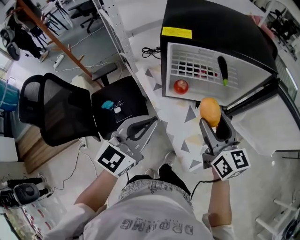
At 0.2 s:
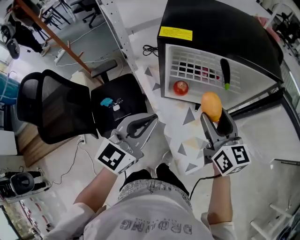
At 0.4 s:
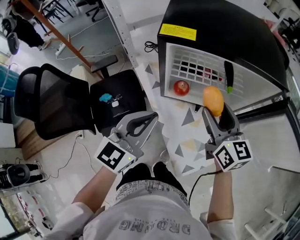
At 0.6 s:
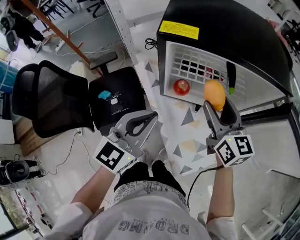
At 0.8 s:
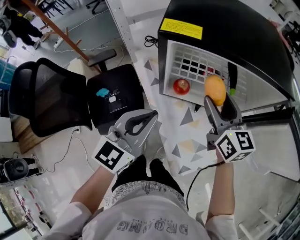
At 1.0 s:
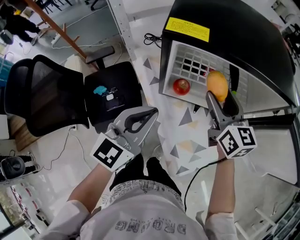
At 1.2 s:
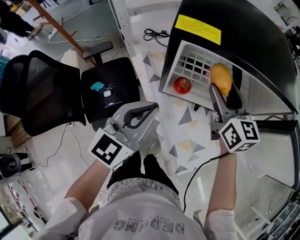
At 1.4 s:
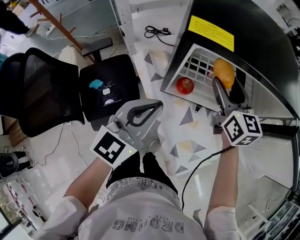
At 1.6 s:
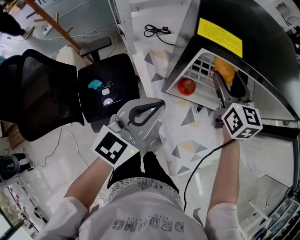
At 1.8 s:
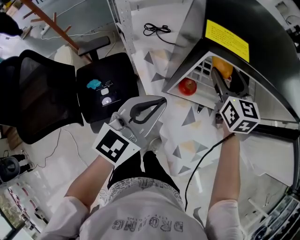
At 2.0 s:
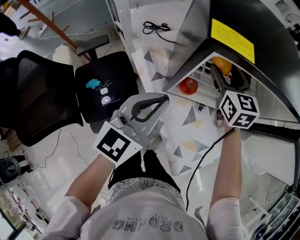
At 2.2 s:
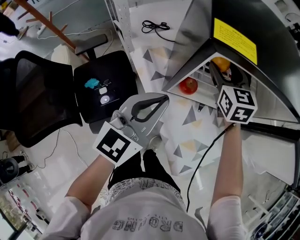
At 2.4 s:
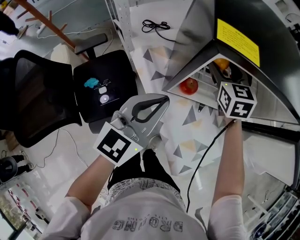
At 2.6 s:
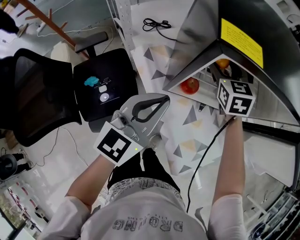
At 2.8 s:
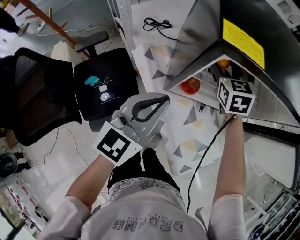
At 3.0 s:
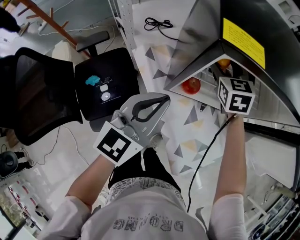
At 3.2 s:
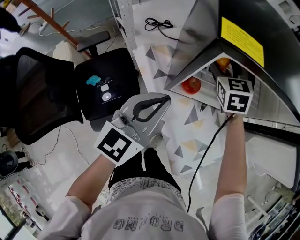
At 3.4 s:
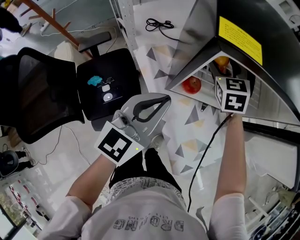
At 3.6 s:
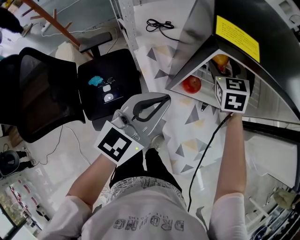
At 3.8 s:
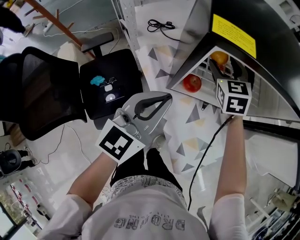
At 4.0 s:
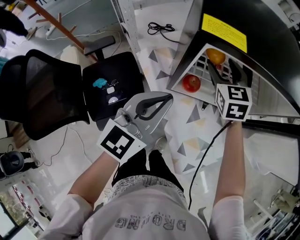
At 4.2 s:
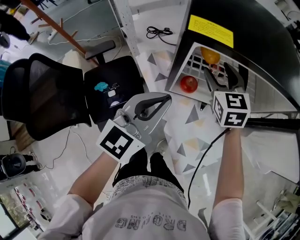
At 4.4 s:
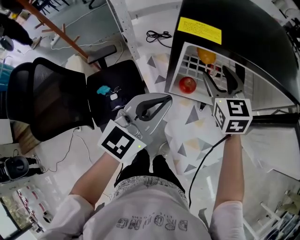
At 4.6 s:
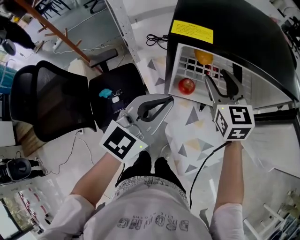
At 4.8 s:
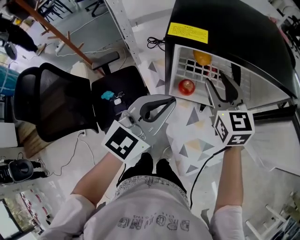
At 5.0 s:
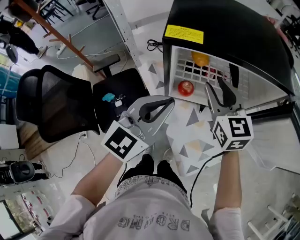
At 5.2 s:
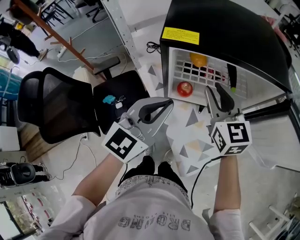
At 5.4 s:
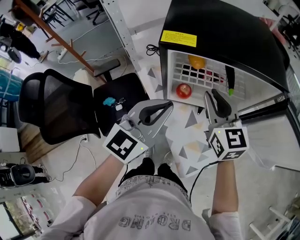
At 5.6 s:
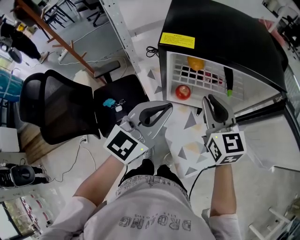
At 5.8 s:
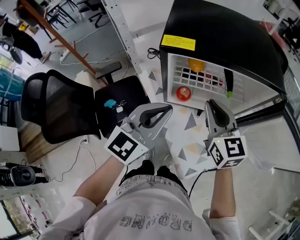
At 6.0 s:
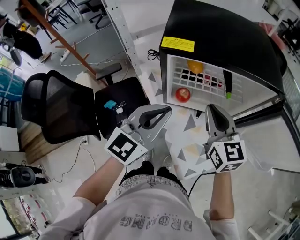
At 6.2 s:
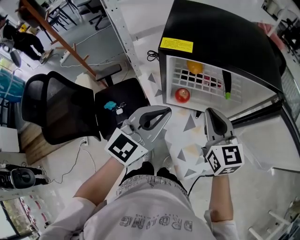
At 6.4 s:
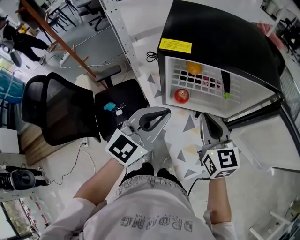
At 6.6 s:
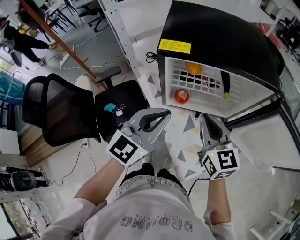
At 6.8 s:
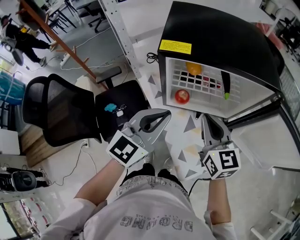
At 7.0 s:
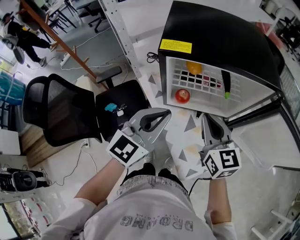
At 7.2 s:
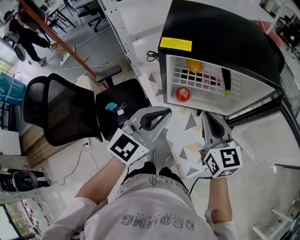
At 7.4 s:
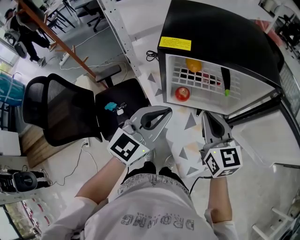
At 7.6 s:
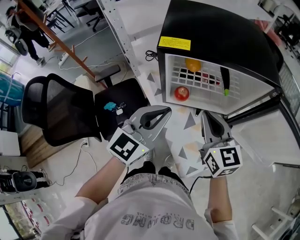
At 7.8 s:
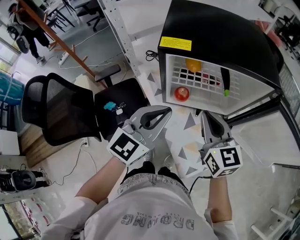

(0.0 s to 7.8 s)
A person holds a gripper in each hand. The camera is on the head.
0.0 s - 1.6 s: The left gripper heads forward, covering approximately 10 cm. Meanwhile the right gripper moves forward, roughly 25 cm.
1.6 s - 3.2 s: The right gripper moves downward and forward, roughly 10 cm, and changes its angle by about 30 degrees.
3.2 s - 4.6 s: The right gripper shifts roughly 15 cm backward and upward; the left gripper is displaced upward by approximately 5 cm.
4.6 s - 6.2 s: The right gripper shifts about 10 cm backward, and closes.
6.2 s - 7.8 s: The grippers move only a little.

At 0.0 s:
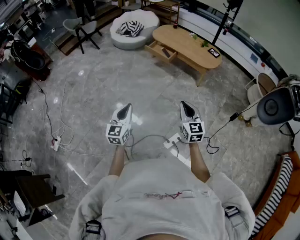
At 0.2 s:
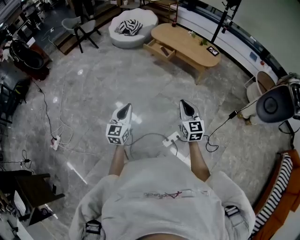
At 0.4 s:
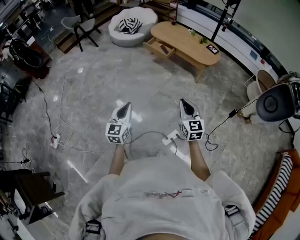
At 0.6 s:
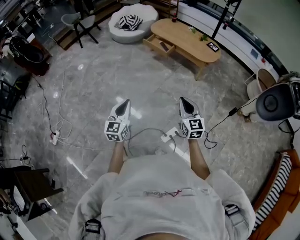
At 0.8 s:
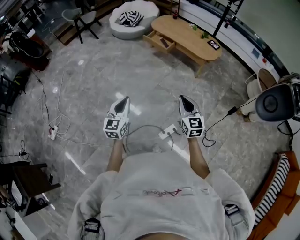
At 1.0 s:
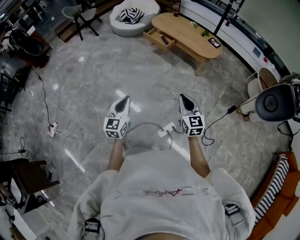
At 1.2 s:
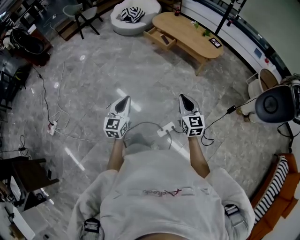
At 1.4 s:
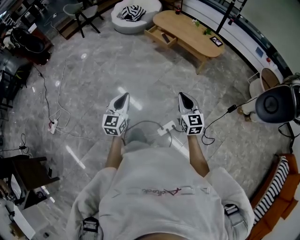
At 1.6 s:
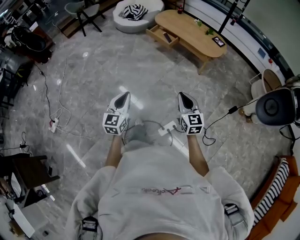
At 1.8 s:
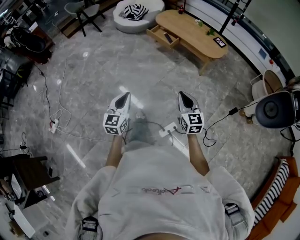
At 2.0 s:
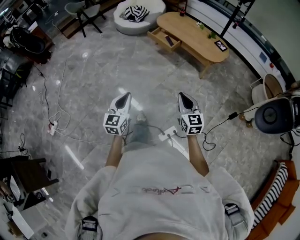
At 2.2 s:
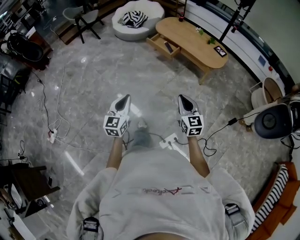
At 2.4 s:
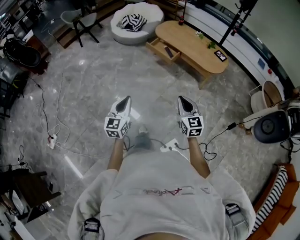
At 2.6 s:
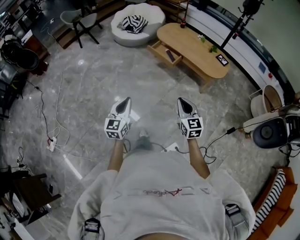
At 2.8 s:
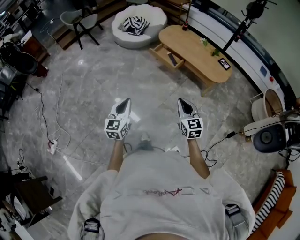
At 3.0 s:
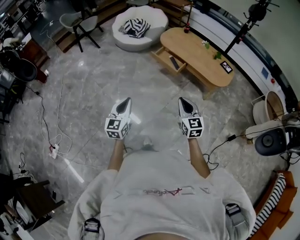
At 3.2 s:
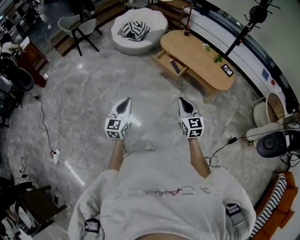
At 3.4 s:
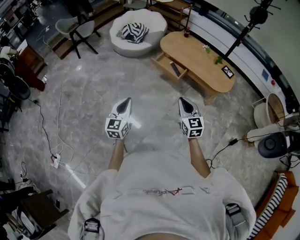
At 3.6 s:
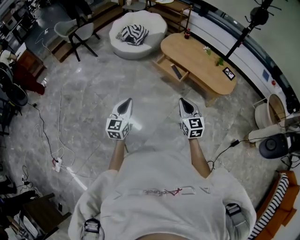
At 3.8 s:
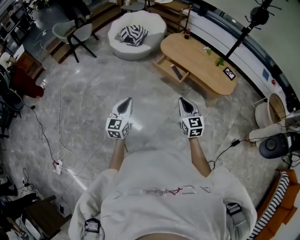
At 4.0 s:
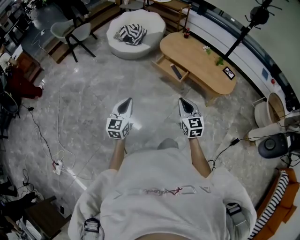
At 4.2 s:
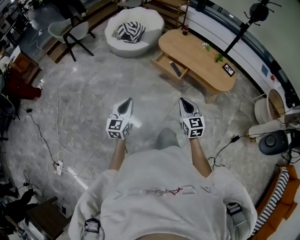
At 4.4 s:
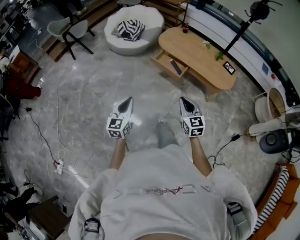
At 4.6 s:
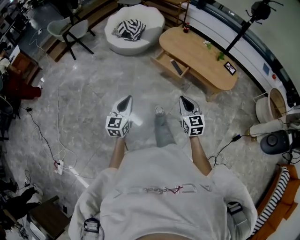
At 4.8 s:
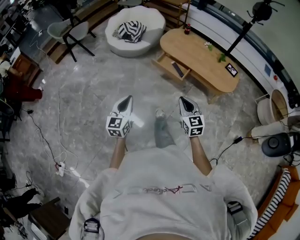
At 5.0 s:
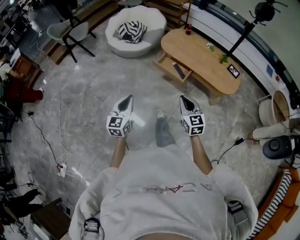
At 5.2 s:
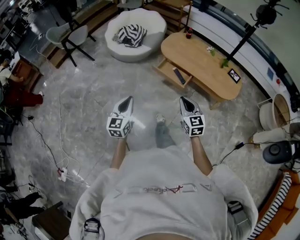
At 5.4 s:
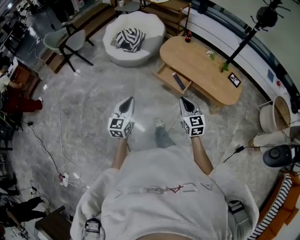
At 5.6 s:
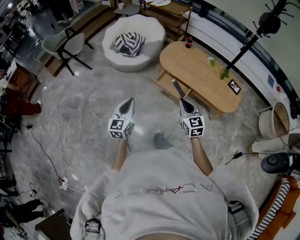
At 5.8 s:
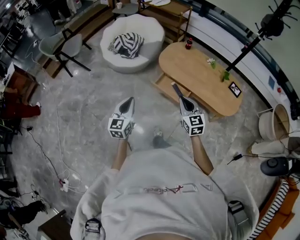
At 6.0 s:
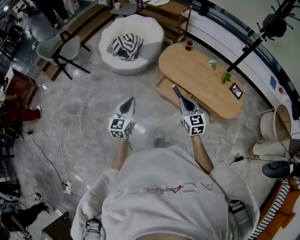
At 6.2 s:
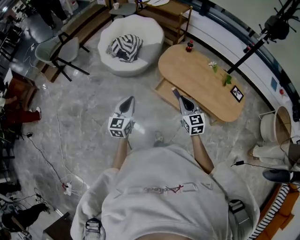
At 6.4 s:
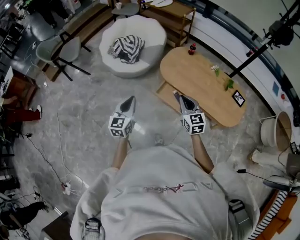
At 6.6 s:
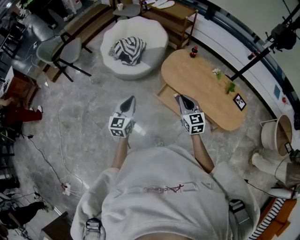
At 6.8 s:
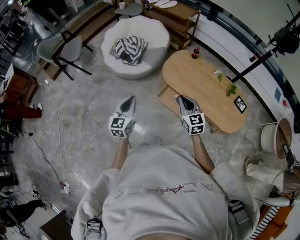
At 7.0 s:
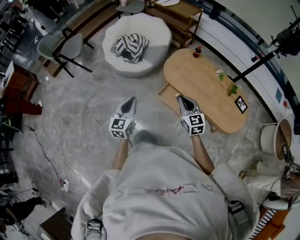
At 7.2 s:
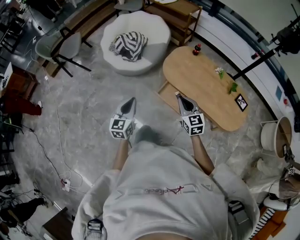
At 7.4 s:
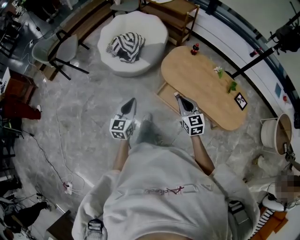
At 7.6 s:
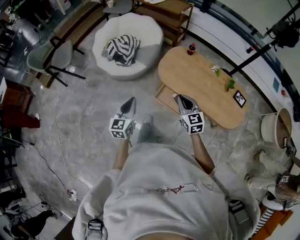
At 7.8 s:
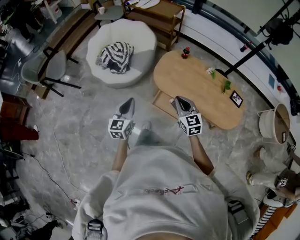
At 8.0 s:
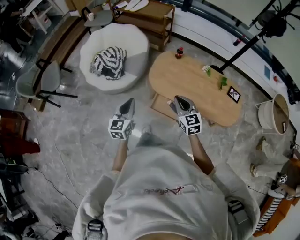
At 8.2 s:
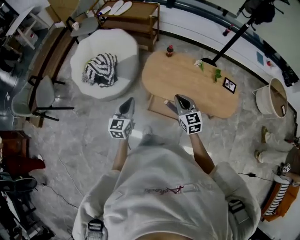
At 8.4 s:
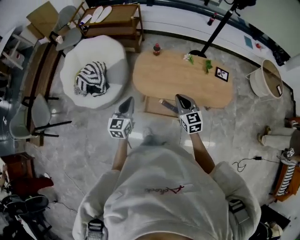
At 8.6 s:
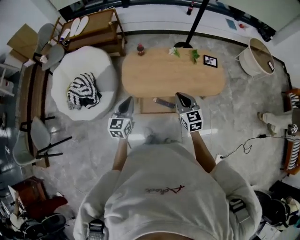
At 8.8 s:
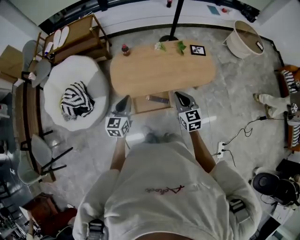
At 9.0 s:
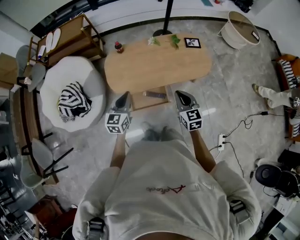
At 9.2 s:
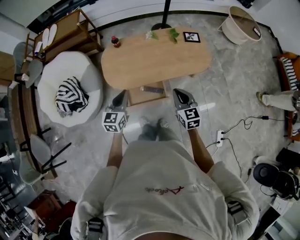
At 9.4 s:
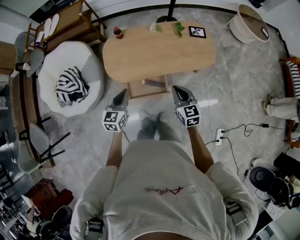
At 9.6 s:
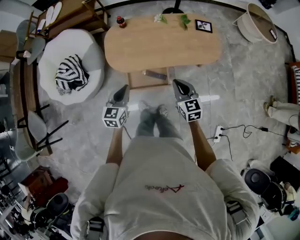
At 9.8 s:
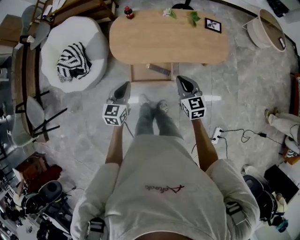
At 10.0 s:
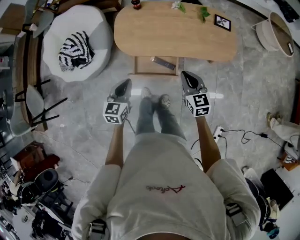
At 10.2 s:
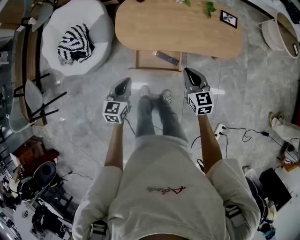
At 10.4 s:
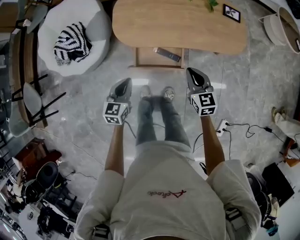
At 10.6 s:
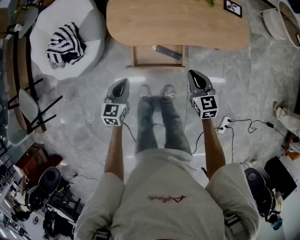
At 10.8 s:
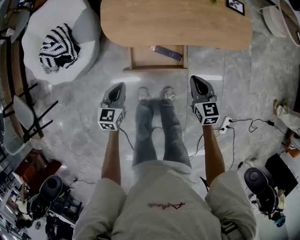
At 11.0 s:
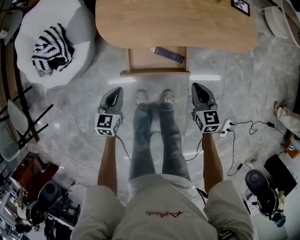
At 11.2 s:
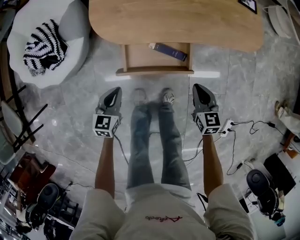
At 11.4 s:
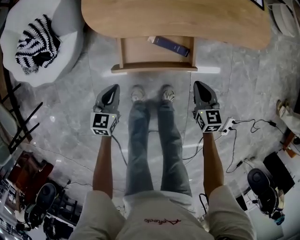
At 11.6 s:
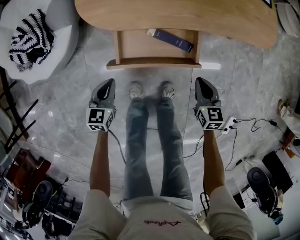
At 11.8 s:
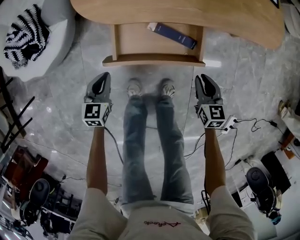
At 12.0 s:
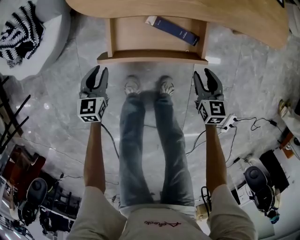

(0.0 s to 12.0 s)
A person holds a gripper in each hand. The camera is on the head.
0.0 s - 1.6 s: The two grippers go about 10 cm to the right.
1.6 s - 3.0 s: Both grippers move forward, about 35 cm.
3.0 s - 4.4 s: The left gripper goes about 15 cm forward. The right gripper shifts approximately 15 cm forward and to the left.
4.4 s - 6.0 s: Both grippers move forward, roughly 40 cm.
6.0 s - 7.6 s: Both grippers travel together forward, approximately 20 cm.
7.6 s - 9.0 s: The right gripper changes place by some 15 cm, and swivels about 50 degrees. Meanwhile the left gripper shifts by roughly 25 cm, and rotates approximately 50 degrees.
9.0 s - 10.4 s: The right gripper goes about 15 cm downward. Meanwhile the left gripper shifts about 20 cm downward and backward.
10.4 s - 12.0 s: Both grippers travel together downward, roughly 40 cm. The right gripper opens; the left gripper opens up.

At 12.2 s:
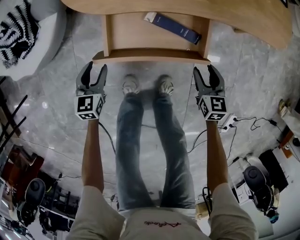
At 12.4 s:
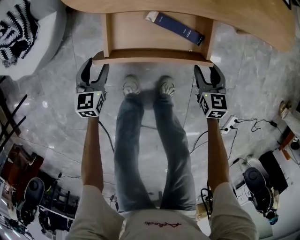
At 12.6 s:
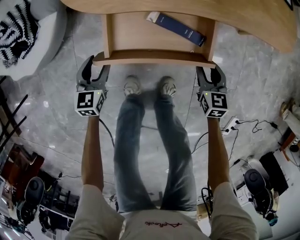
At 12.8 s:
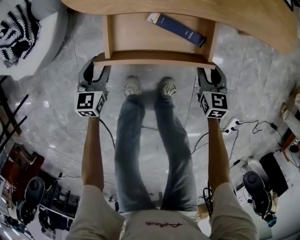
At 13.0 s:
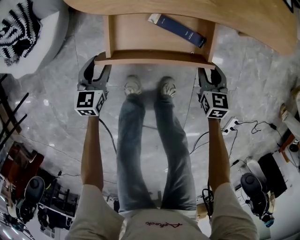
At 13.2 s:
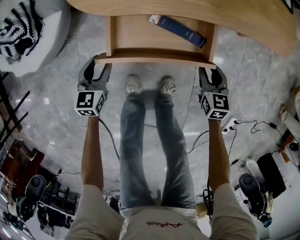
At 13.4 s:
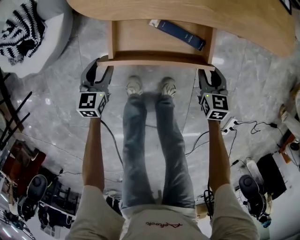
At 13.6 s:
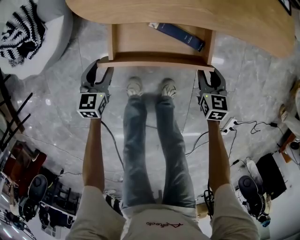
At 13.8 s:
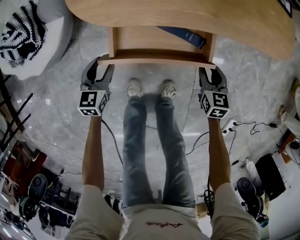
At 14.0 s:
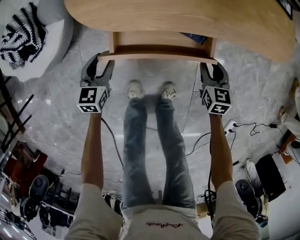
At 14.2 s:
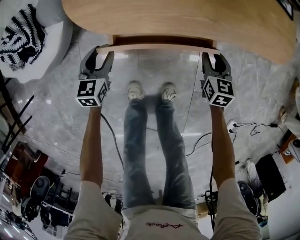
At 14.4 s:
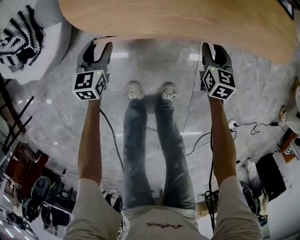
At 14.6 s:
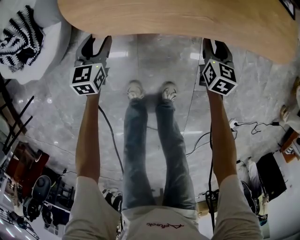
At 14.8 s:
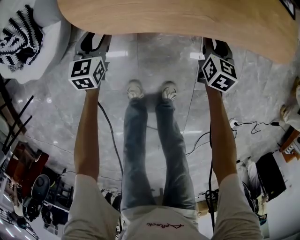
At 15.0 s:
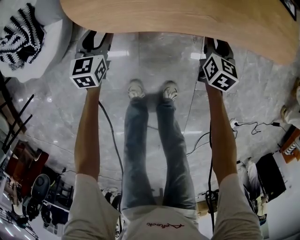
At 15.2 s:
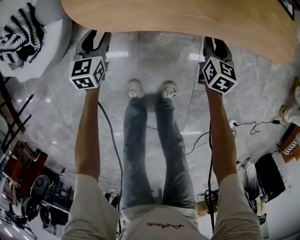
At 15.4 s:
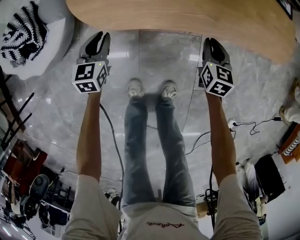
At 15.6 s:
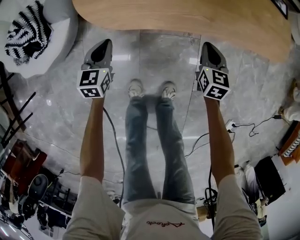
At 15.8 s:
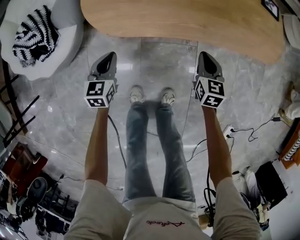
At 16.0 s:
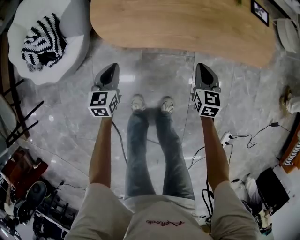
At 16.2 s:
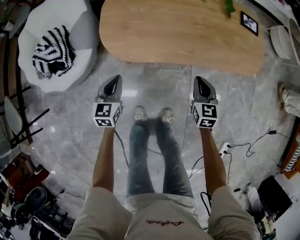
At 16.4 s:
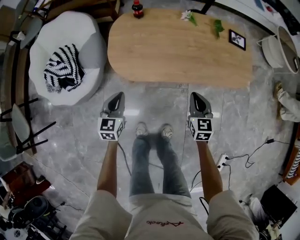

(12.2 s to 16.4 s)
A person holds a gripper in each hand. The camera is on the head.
12.2 s - 13.6 s: The grippers stay close to where they were, moving slightly.
13.6 s - 15.0 s: The grippers both shift forward by roughly 15 cm.
15.0 s - 16.4 s: The grippers both shift upward by some 30 cm. The left gripper closes up; the right gripper changes its angle by some 20 degrees, and closes up.
